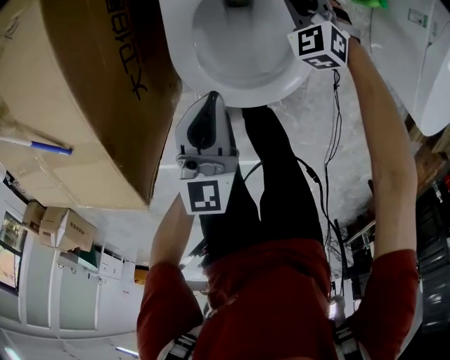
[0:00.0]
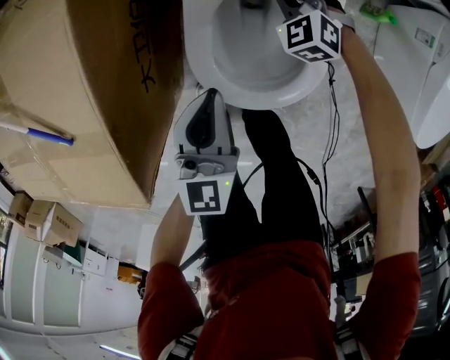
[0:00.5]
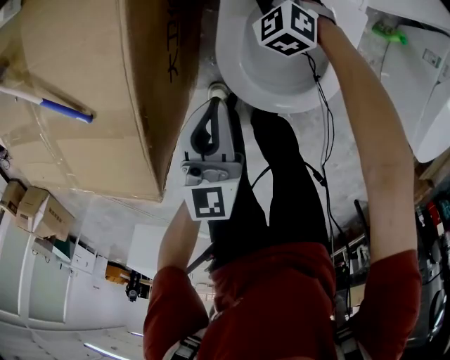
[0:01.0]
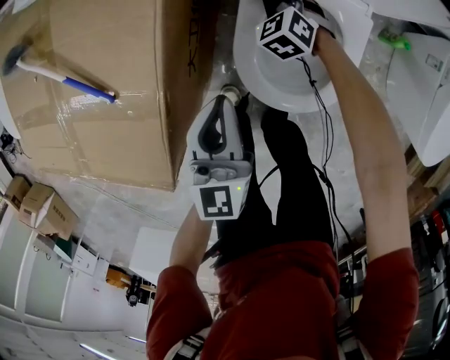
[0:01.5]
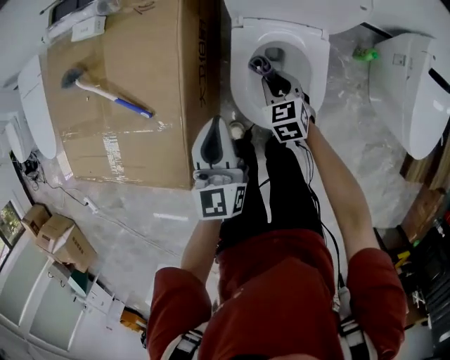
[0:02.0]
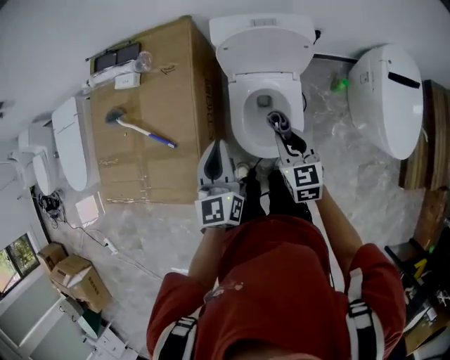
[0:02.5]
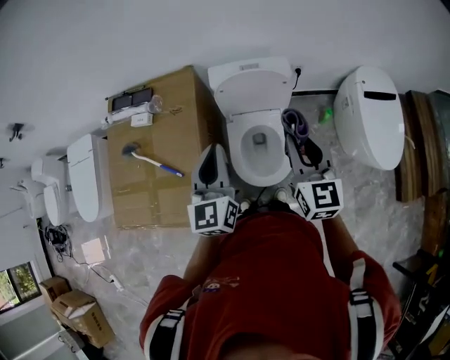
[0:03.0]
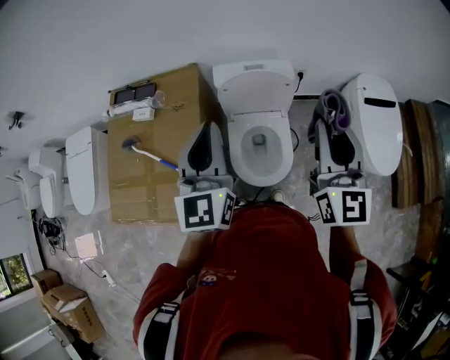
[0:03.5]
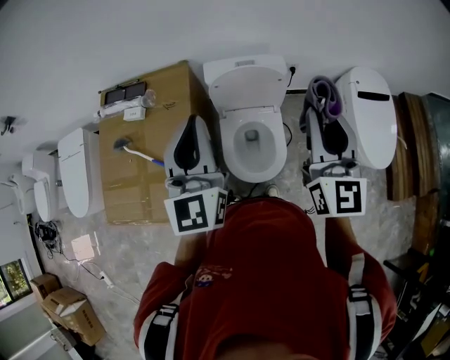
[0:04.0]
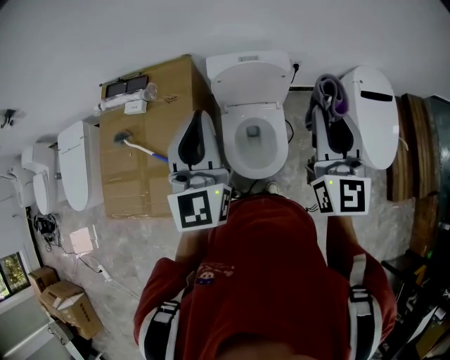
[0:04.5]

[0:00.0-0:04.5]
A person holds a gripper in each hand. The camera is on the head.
0:00.0 to 0:02.0: The left gripper shifts approximately 20 cm upward and to the left; the right gripper goes roughly 25 cm to the left, upward and backward, and swivels about 30 degrees.
0:02.0 to 0:04.5: The grippers both shift upward by some 50 cm. The right gripper points its fingers some 50 degrees further upward; the left gripper turns by about 30 degrees.

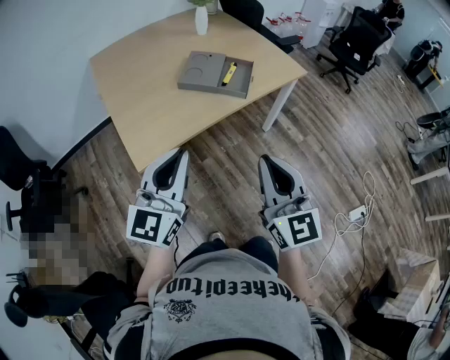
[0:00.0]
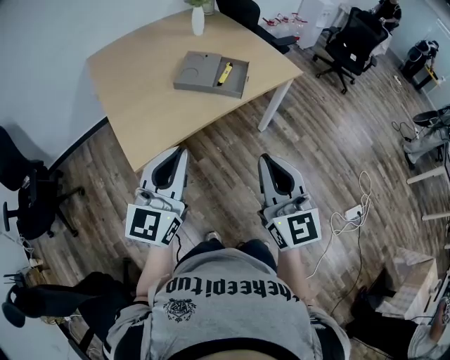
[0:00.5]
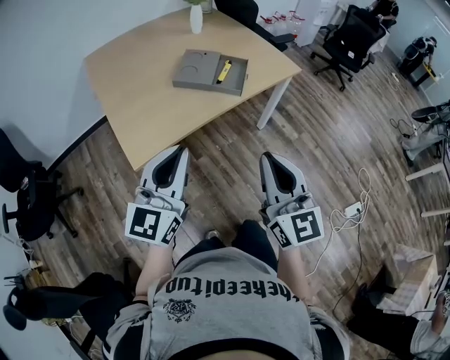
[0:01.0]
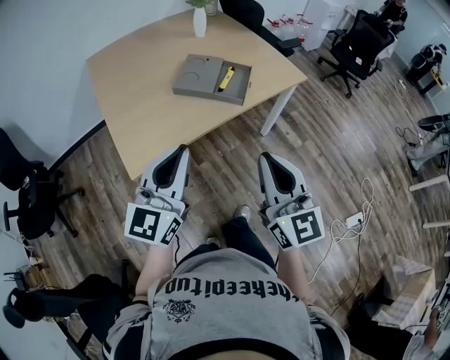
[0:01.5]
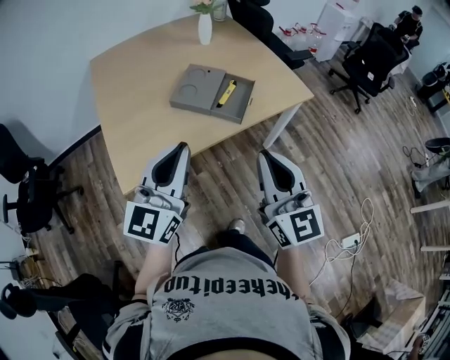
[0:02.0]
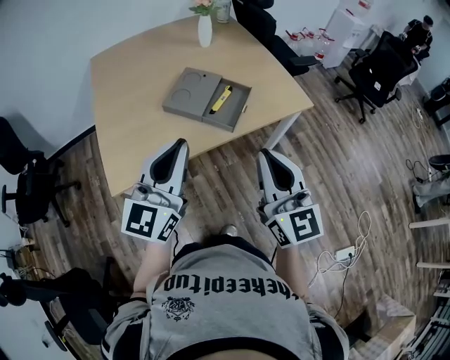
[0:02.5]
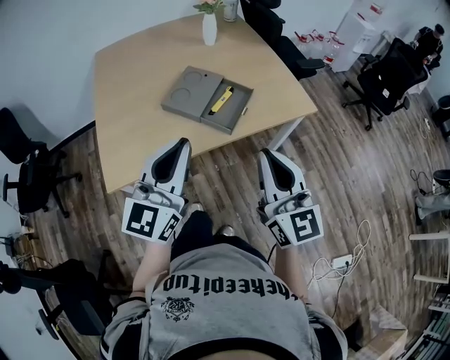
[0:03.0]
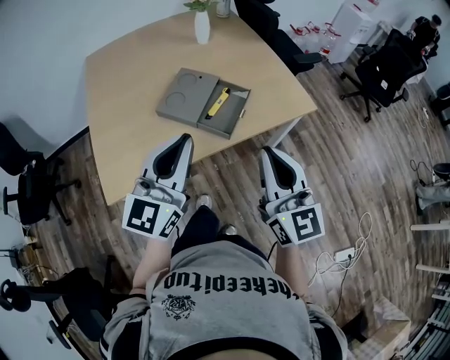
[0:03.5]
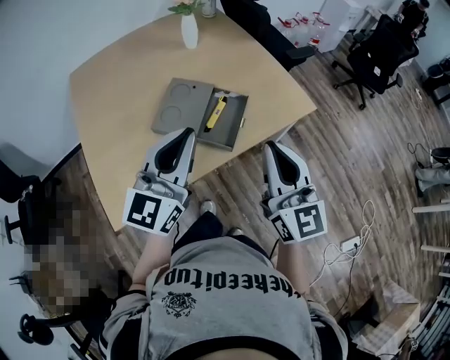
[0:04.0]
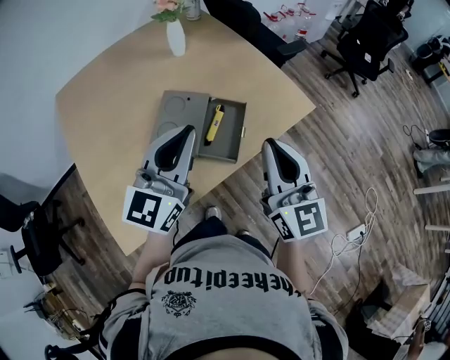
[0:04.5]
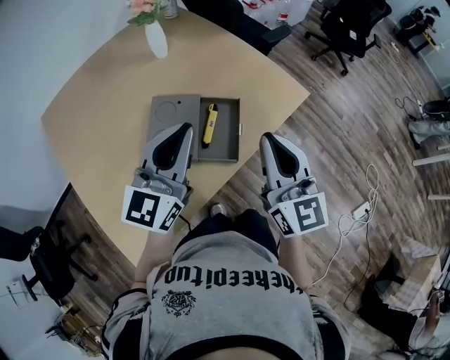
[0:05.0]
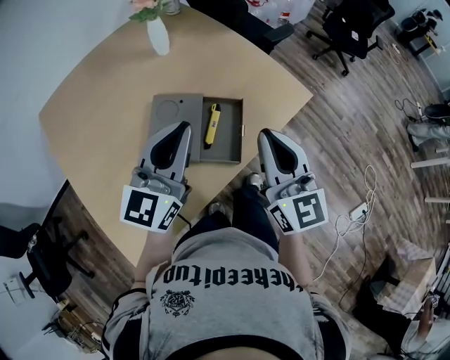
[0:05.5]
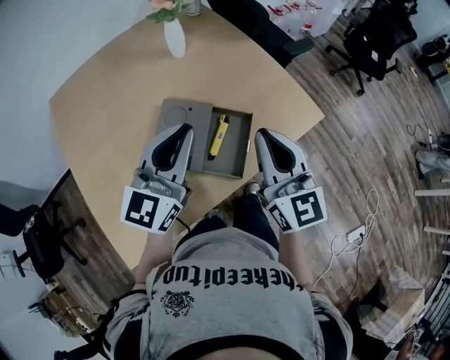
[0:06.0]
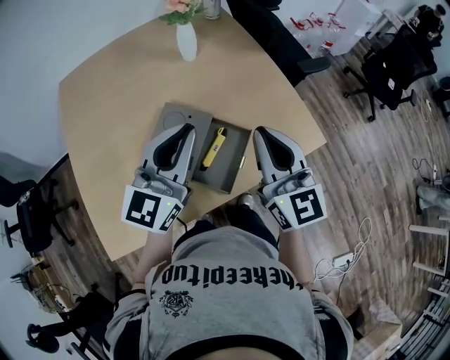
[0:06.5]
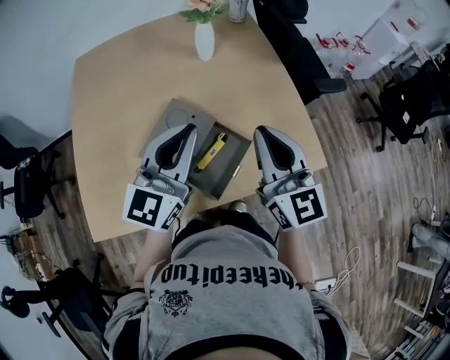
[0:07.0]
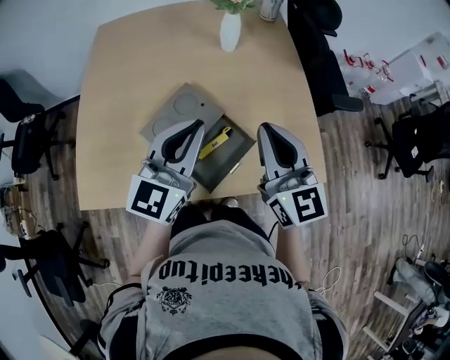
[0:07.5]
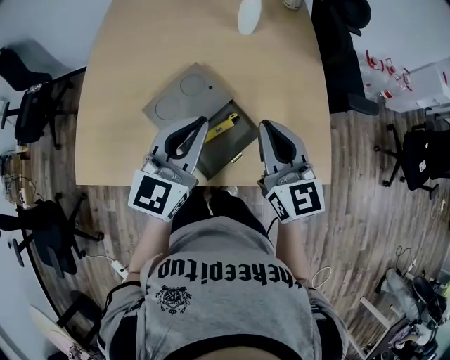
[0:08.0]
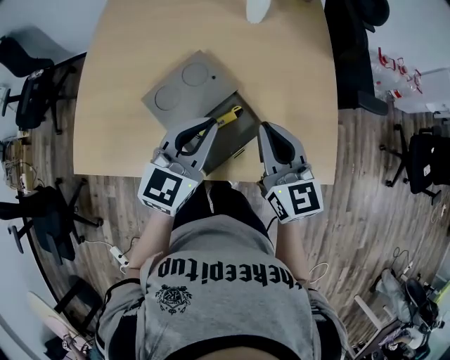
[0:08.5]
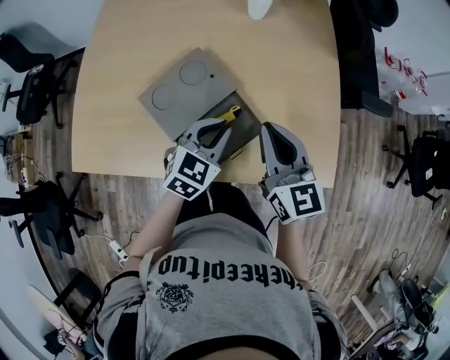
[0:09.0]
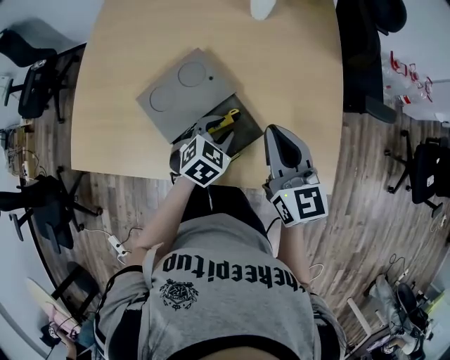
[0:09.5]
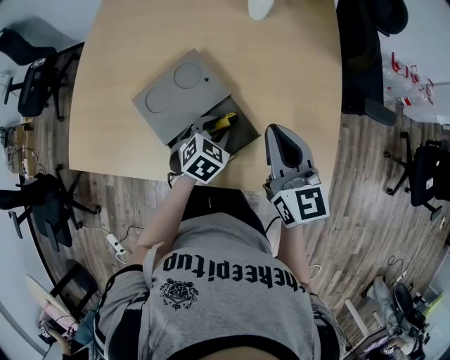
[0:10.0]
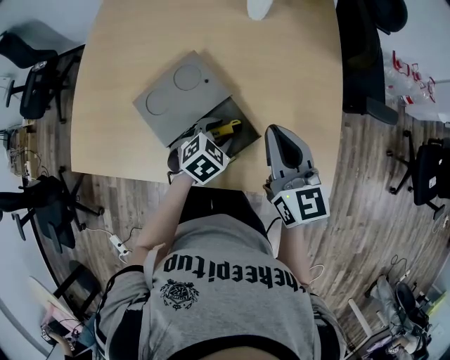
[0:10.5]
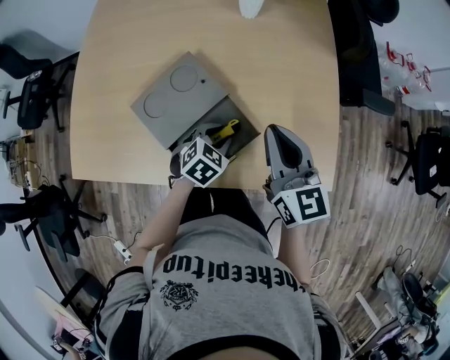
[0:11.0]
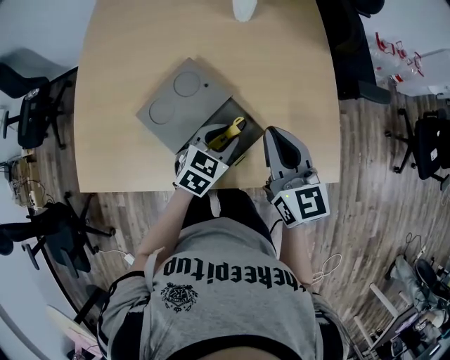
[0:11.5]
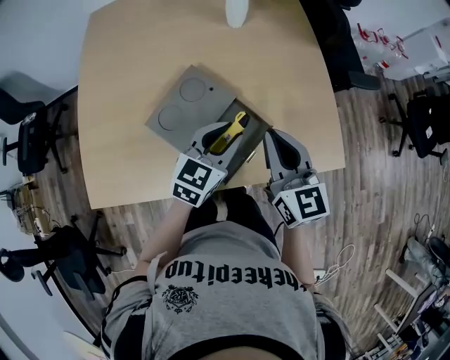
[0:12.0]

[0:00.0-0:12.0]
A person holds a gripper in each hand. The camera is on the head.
0:00.0 to 0:02.0: The left gripper shifts roughly 15 cm forward and to the right. Meanwhile the right gripper moves forward, about 15 cm.
0:02.0 to 0:04.0: The two grippers go some 20 cm forward.
0:04.0 to 0:06.0: Both grippers move forward, roughly 15 cm.
0:06.0 to 0:08.0: The left gripper shifts by approximately 10 cm, and swivels some 30 degrees, while the right gripper changes place by approximately 15 cm, and changes its angle by roughly 40 degrees.
0:08.0 to 0:10.0: The left gripper goes some 25 cm downward, angles its fingers downward, by some 50 degrees, and opens; the right gripper is displaced downward by approximately 5 cm.
0:10.0 to 0:12.0: The right gripper is displaced backward by about 5 cm, while the left gripper goes about 15 cm upward, and tips its fingers upward by some 30 degrees.

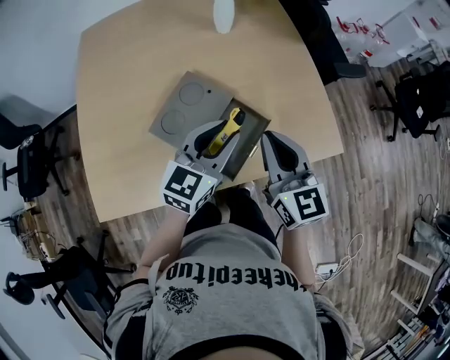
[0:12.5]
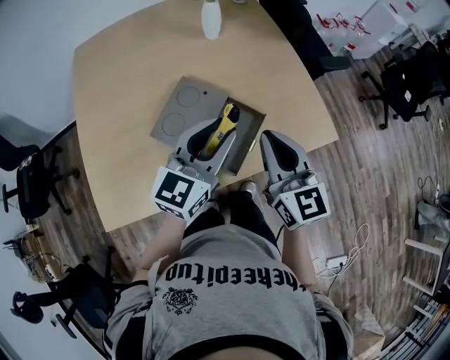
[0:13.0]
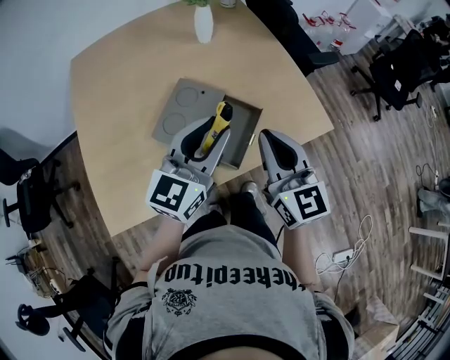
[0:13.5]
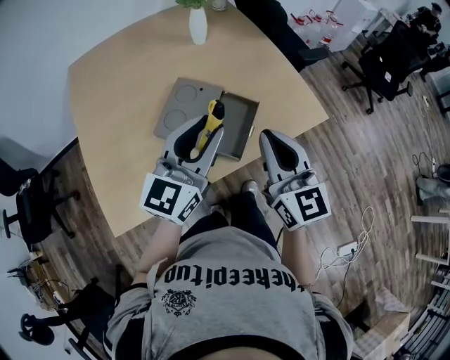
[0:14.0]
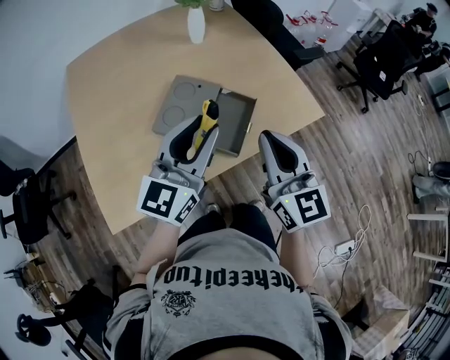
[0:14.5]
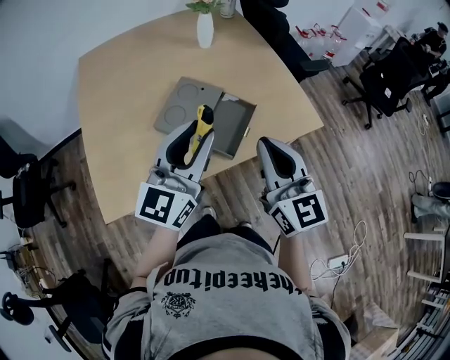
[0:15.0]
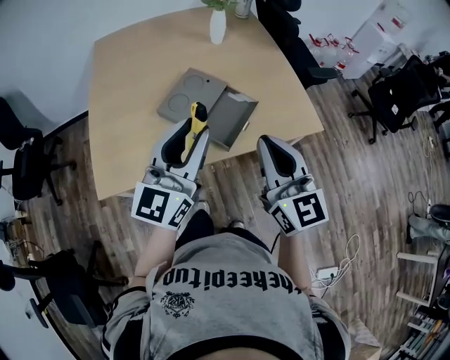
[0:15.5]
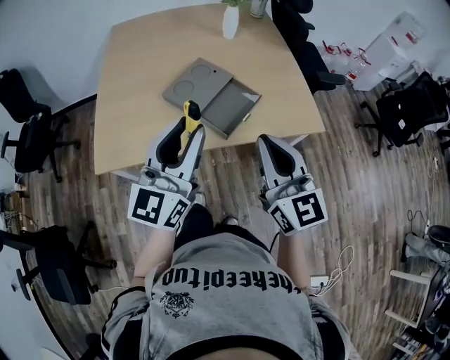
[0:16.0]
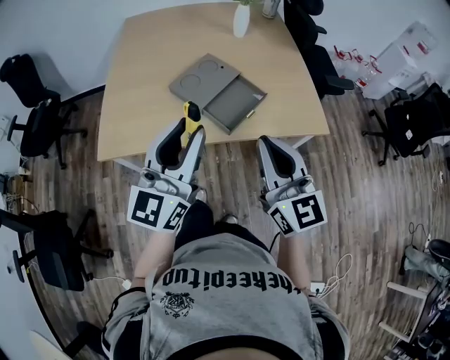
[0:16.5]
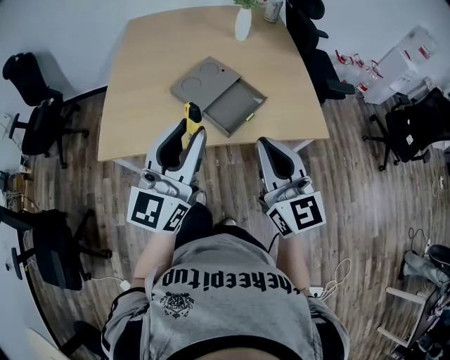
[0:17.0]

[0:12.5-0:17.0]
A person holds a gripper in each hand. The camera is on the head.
0:12.5 to 0:14.5: The left gripper moves backward, upward and to the left, roughly 20 cm, and swivels approximately 20 degrees; the right gripper heads backward and upward, covering some 15 cm.
0:14.5 to 0:17.0: The two grippers go some 15 cm backward. The left gripper changes its angle by approximately 30 degrees. The right gripper changes its angle by about 20 degrees.

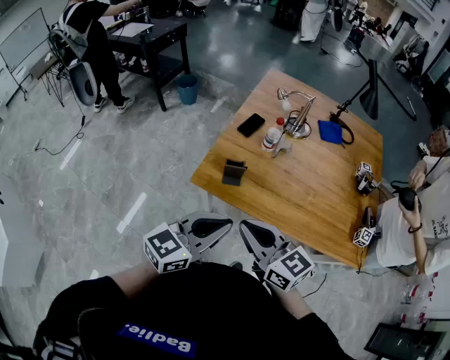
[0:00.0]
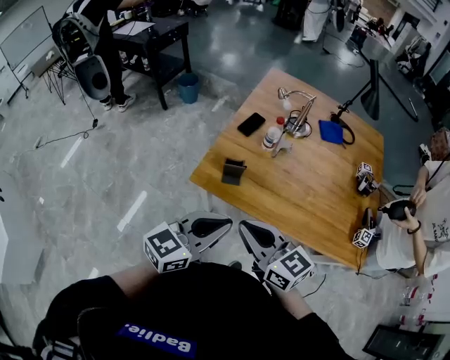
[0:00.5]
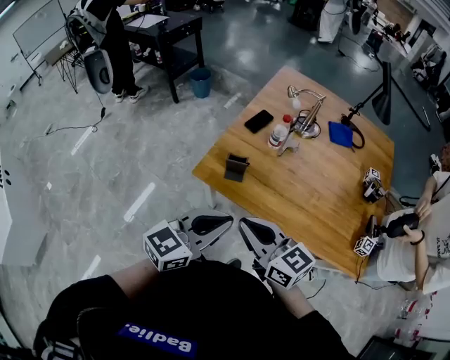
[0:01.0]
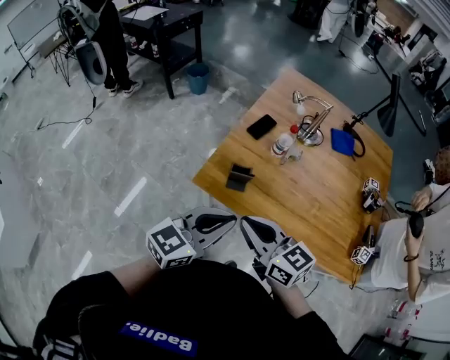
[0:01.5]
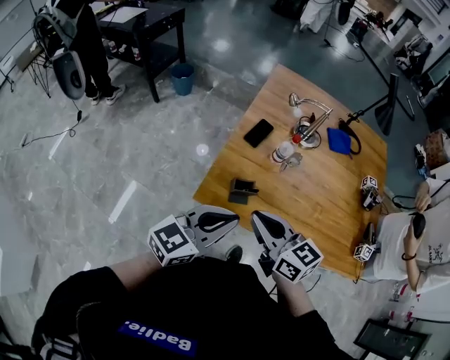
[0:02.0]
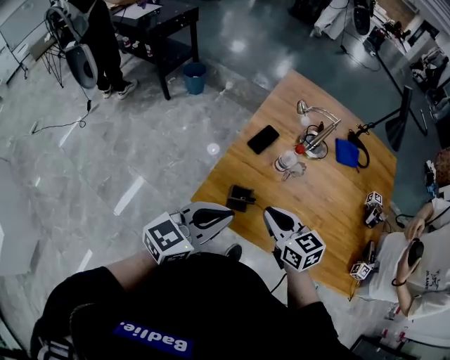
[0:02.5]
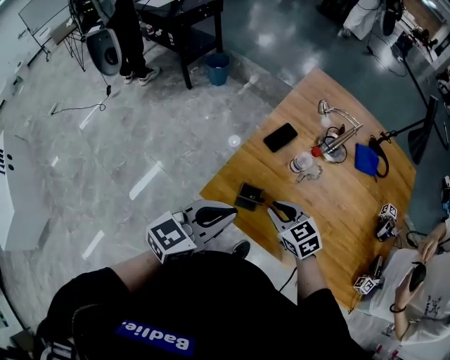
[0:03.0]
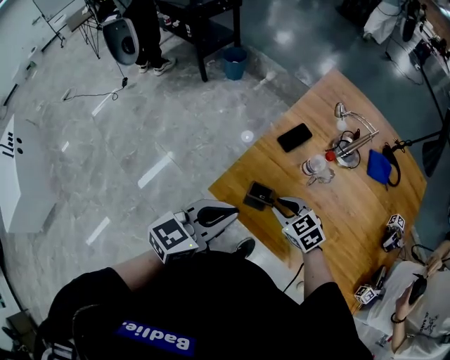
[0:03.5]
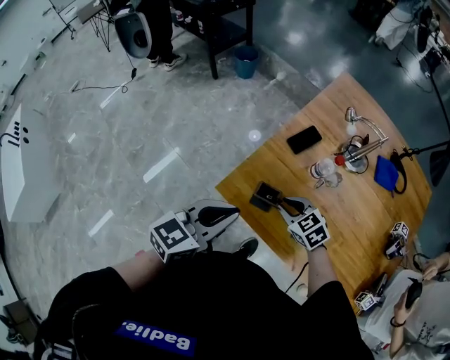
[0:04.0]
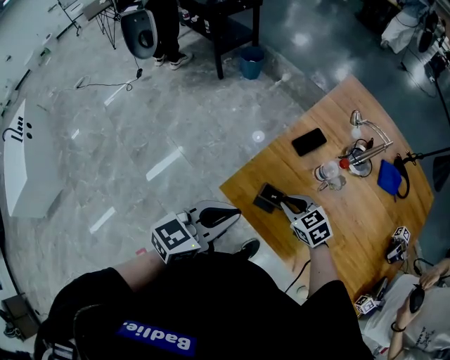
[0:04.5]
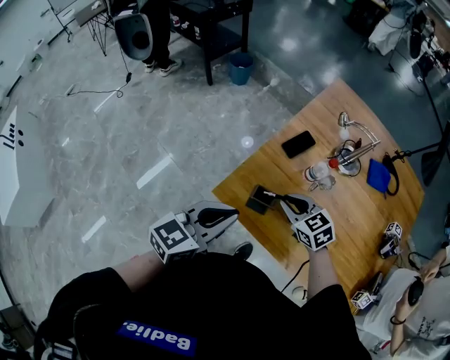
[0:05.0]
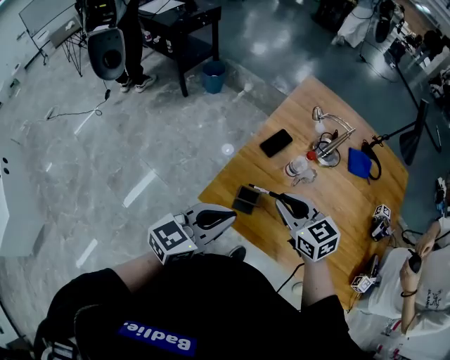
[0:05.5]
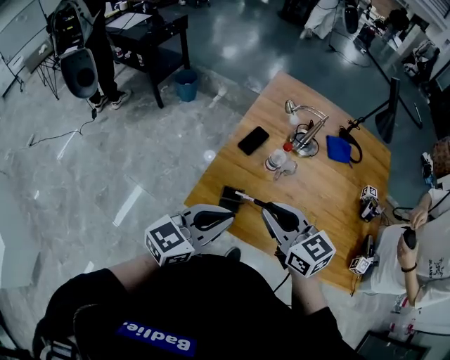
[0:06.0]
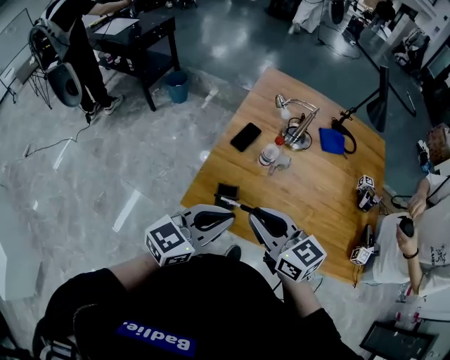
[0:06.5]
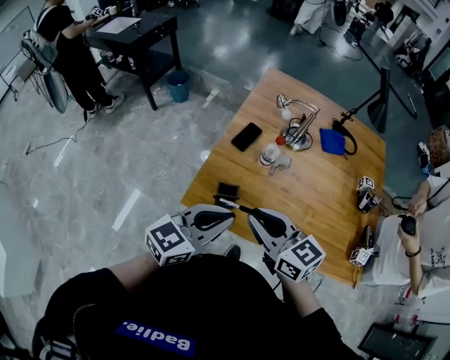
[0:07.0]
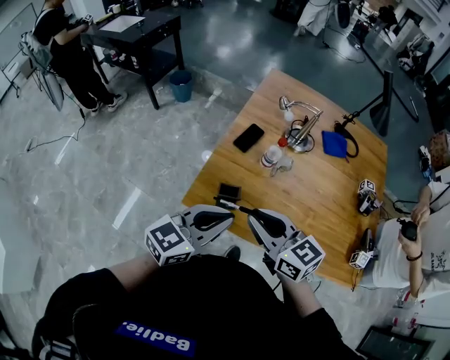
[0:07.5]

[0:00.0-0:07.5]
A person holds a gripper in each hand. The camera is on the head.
0:00.0 to 0:02.0: The left gripper heads forward and to the left, covering approximately 15 cm. The right gripper travels forward by roughly 15 cm.
0:02.0 to 0:04.0: The left gripper moves about 5 cm, and rotates about 20 degrees. Meanwhile the right gripper is displaced downward and forward by some 20 cm, and tilts its fingers approximately 30 degrees downward.
0:04.0 to 0:05.5: The right gripper goes approximately 15 cm upward, and changes its angle by roughly 30 degrees.
0:05.5 to 0:07.5: The right gripper shifts approximately 10 cm backward and upward.
